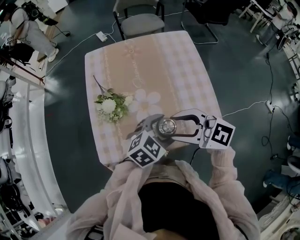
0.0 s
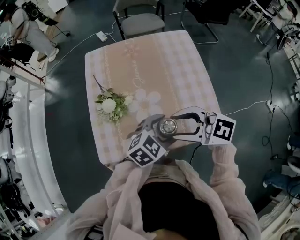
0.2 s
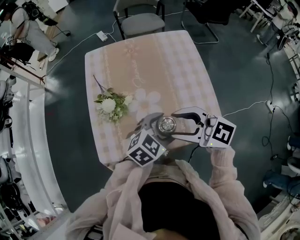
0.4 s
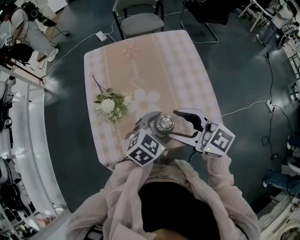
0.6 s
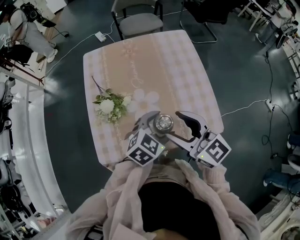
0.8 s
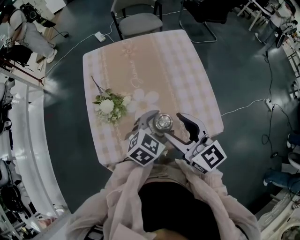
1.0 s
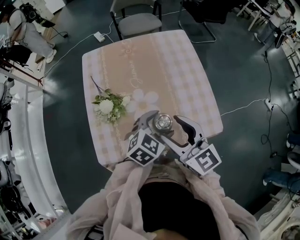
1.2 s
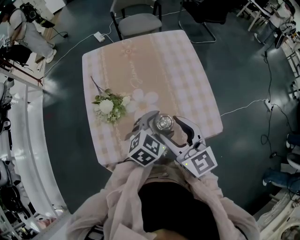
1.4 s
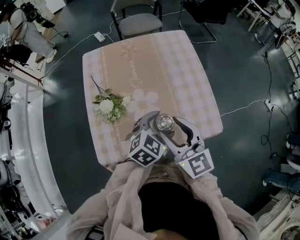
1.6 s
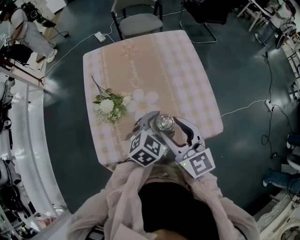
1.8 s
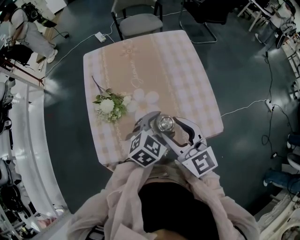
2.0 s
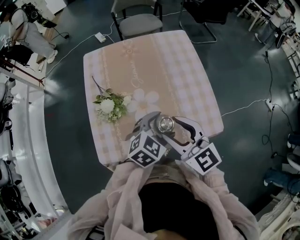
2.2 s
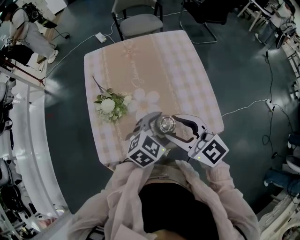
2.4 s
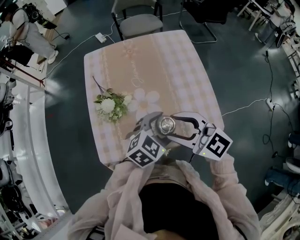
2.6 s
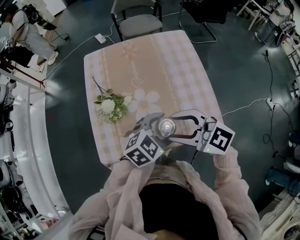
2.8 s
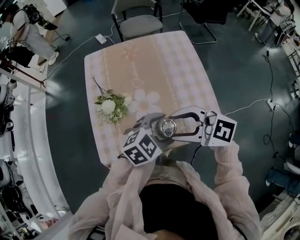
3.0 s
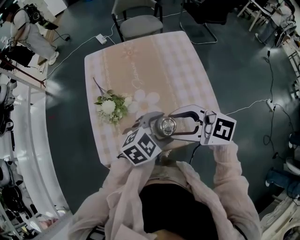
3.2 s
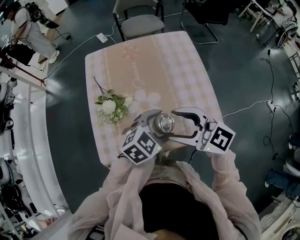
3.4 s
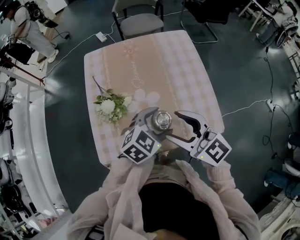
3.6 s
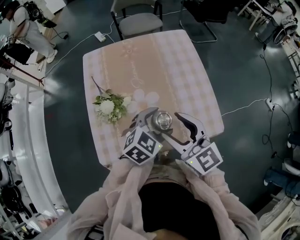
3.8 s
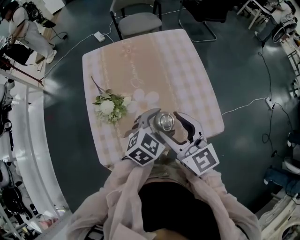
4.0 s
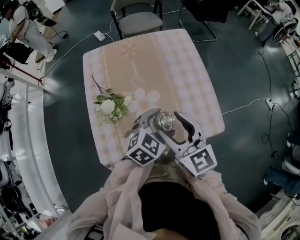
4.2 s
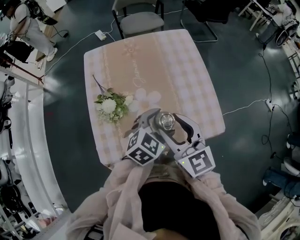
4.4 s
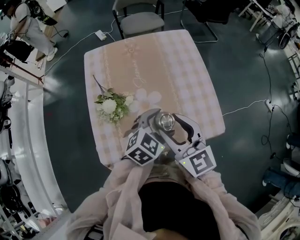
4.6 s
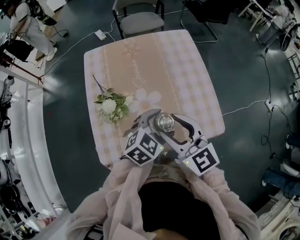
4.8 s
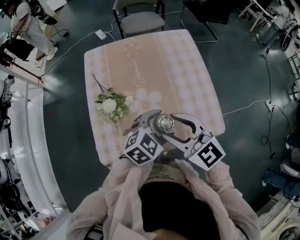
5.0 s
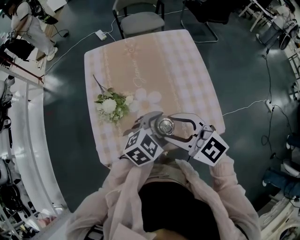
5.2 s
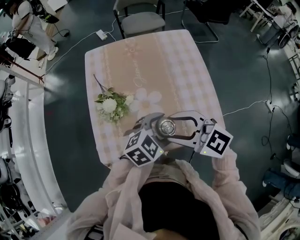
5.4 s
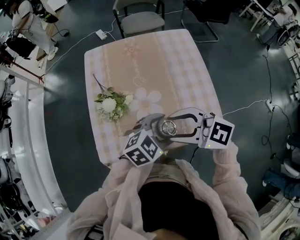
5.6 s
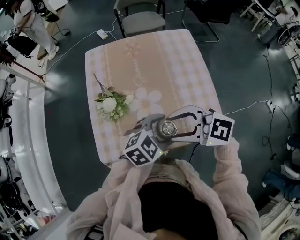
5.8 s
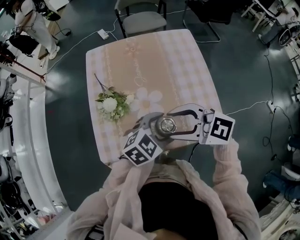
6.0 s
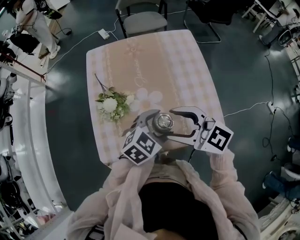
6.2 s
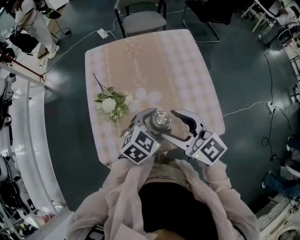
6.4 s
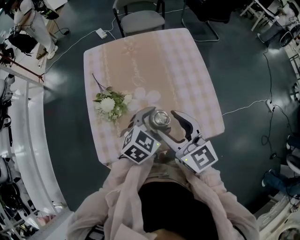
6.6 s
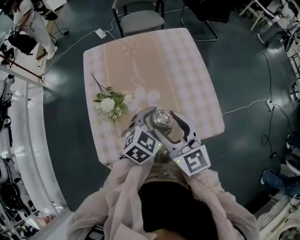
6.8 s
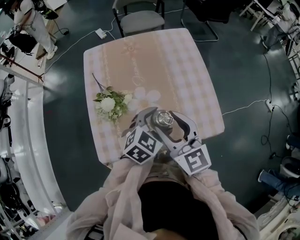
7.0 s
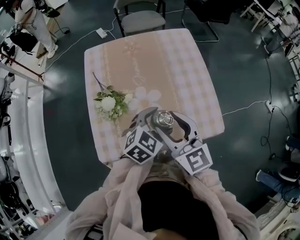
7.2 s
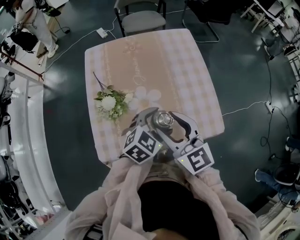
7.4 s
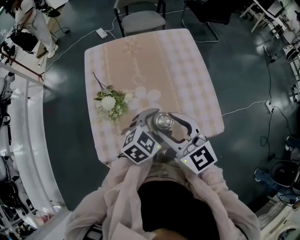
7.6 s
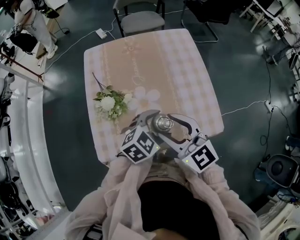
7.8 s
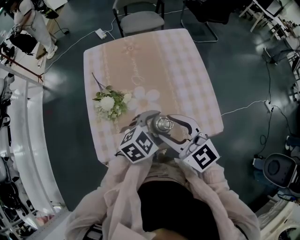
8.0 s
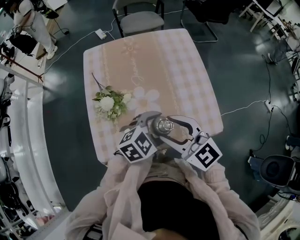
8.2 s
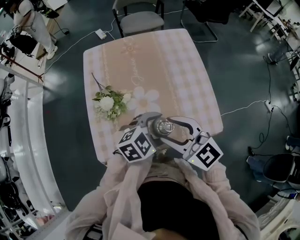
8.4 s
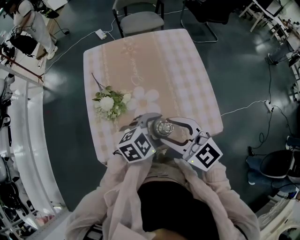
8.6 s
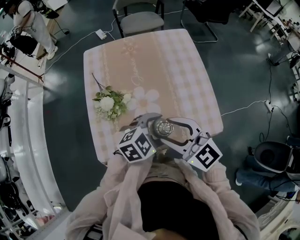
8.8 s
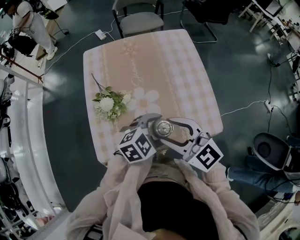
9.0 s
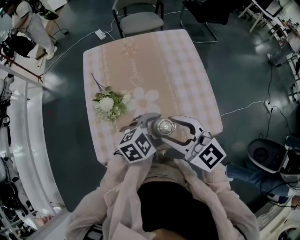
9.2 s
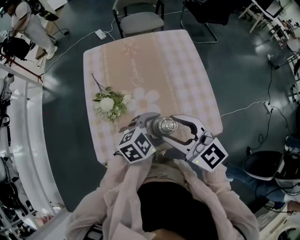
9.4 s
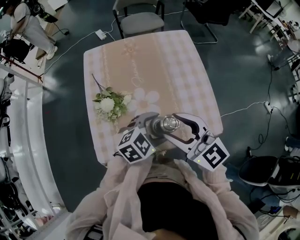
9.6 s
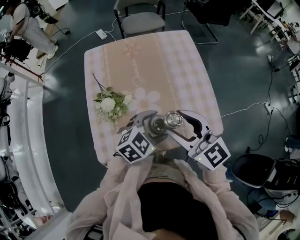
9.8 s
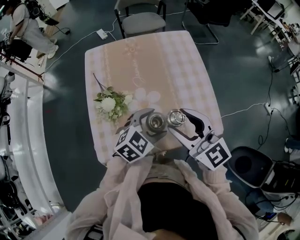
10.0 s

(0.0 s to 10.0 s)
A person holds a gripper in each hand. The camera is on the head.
0.0 s - 1.4 s: The right gripper swivels about 40 degrees.
1.4 s - 2.8 s: The right gripper turns by about 40 degrees.
2.8 s - 4.2 s: The right gripper swivels about 40 degrees.
4.2 s - 5.8 s: The right gripper changes its angle by about 50 degrees.
5.8 s - 7.2 s: The right gripper rotates approximately 50 degrees.
7.2 s - 8.6 s: The right gripper turns by roughly 30 degrees.
8.6 s - 10.0 s: The right gripper changes place by roughly 5 cm.

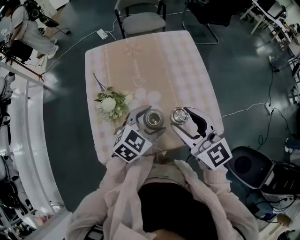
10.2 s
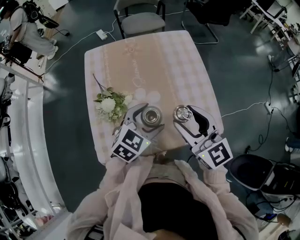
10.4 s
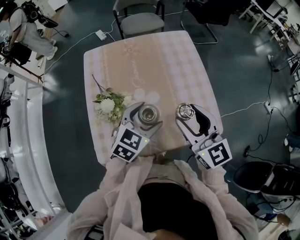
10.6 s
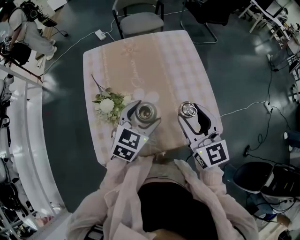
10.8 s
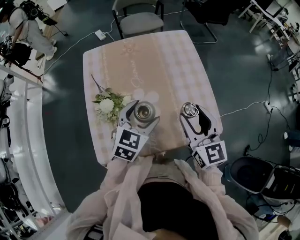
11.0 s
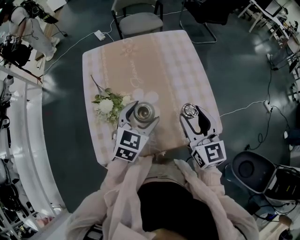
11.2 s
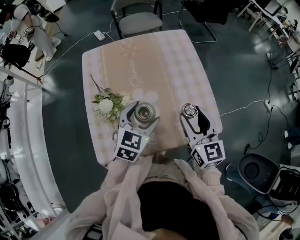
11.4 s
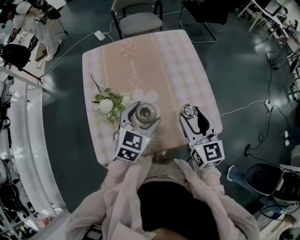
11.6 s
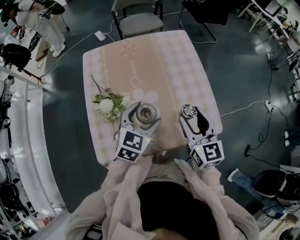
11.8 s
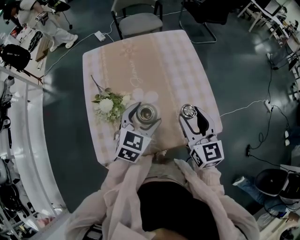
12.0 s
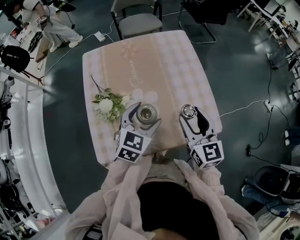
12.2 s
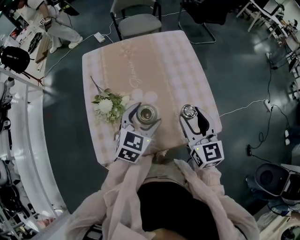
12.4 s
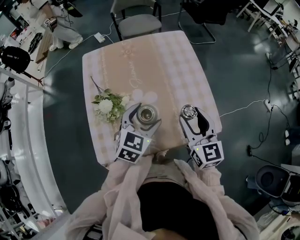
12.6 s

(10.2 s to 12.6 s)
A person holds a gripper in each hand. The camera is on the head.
10.2 s - 11.4 s: The right gripper goes approximately 10 cm to the right and downward, and rotates about 30 degrees.
11.4 s - 12.6 s: There are only small adjustments of the grippers.

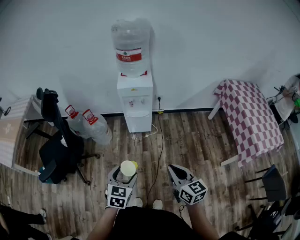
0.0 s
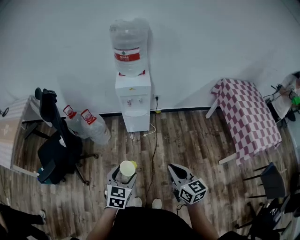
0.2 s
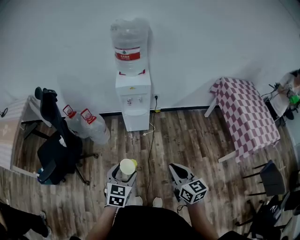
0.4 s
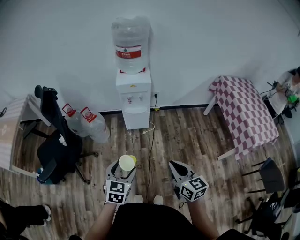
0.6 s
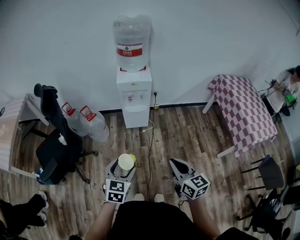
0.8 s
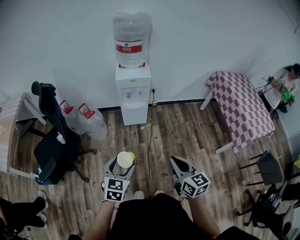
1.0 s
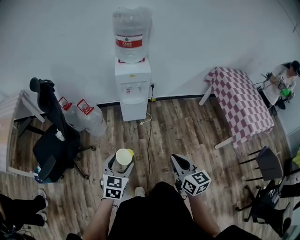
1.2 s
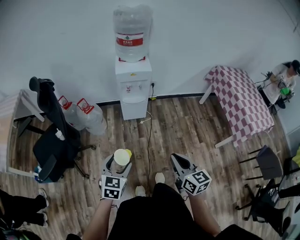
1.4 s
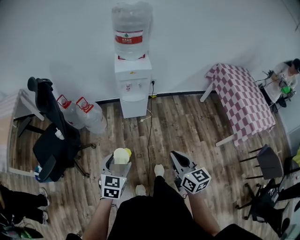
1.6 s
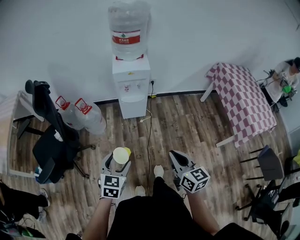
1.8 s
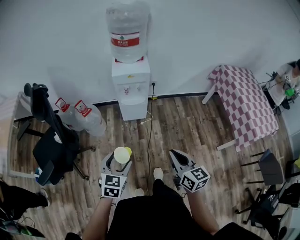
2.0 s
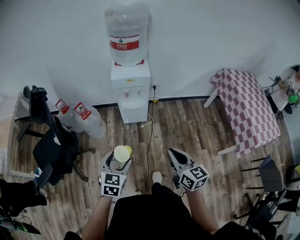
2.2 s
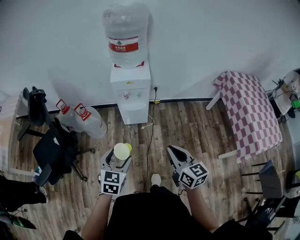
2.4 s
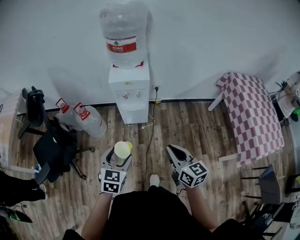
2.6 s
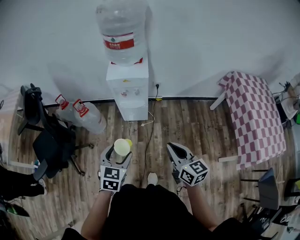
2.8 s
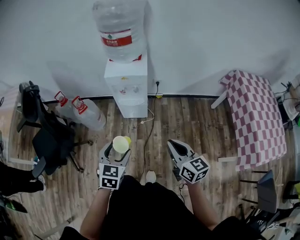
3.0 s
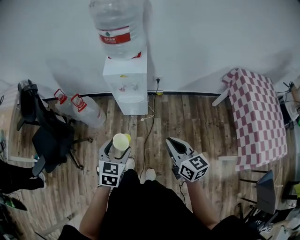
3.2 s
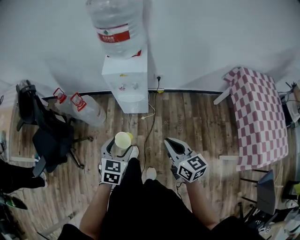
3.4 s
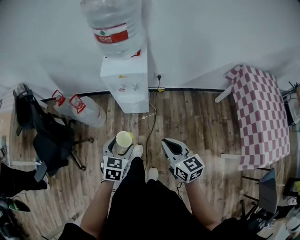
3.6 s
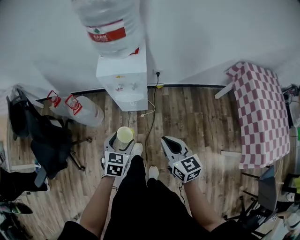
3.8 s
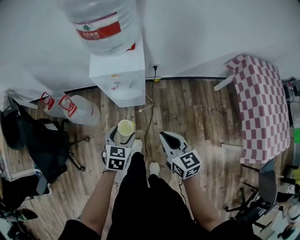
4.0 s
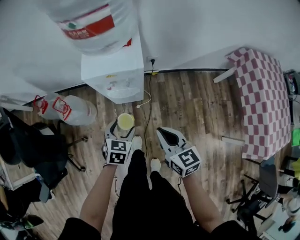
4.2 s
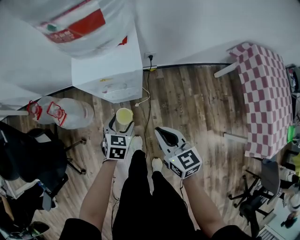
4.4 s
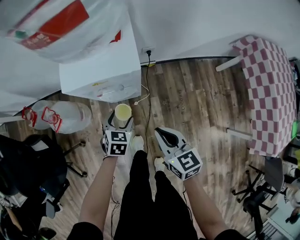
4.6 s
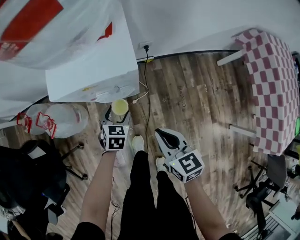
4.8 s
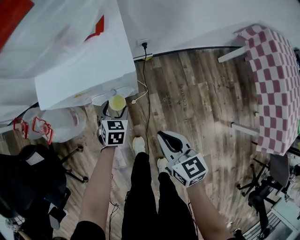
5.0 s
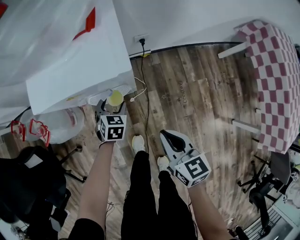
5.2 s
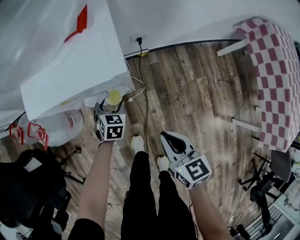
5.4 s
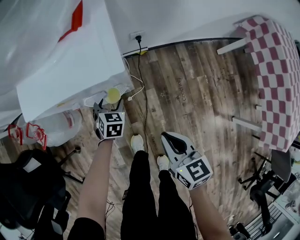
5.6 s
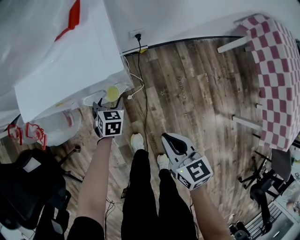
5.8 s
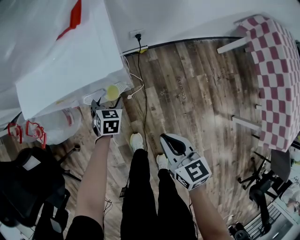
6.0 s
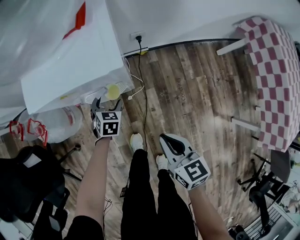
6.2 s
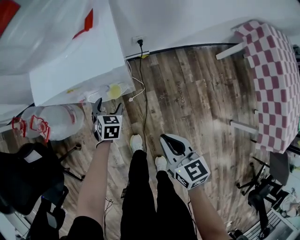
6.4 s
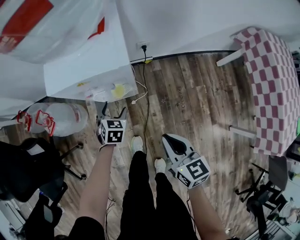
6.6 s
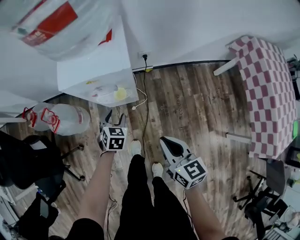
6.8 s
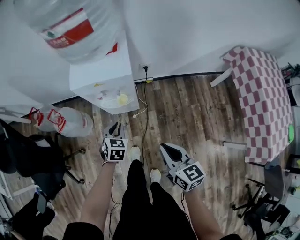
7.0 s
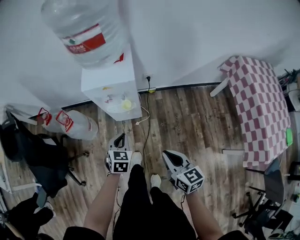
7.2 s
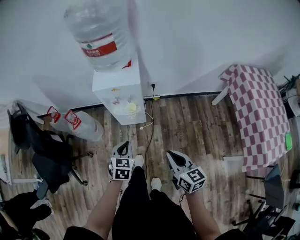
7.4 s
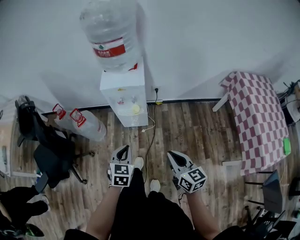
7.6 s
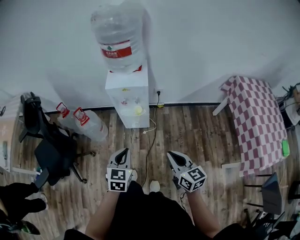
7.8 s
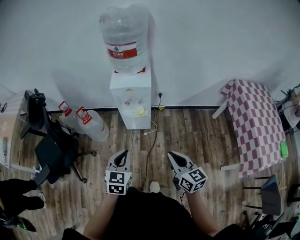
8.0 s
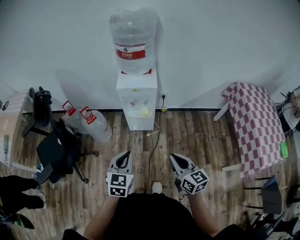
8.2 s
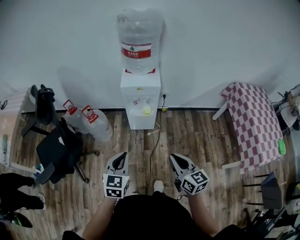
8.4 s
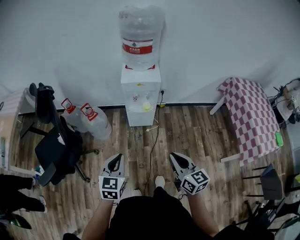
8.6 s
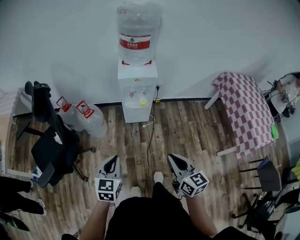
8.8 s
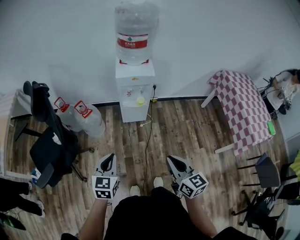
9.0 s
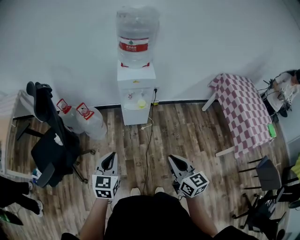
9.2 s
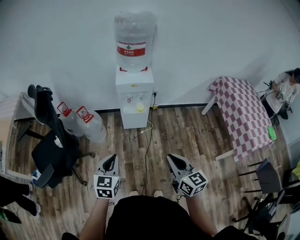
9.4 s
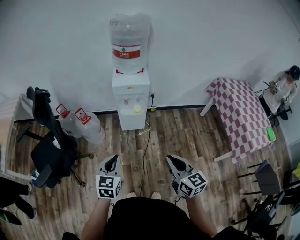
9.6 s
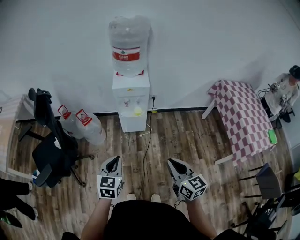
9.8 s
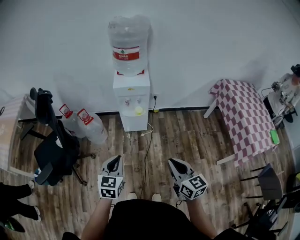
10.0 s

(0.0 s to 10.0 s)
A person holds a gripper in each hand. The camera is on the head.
0.0 s - 1.4 s: The two grippers go some 10 cm to the left.
1.4 s - 2.8 s: Both grippers move forward and to the right, approximately 25 cm.
2.8 s - 4.2 s: Both grippers move forward and downward, roughly 25 cm.
4.2 s - 5.8 s: The right gripper heads downward, covering roughly 20 cm. Meanwhile the left gripper is displaced downward and forward by approximately 35 cm.
5.8 s - 7.2 s: The left gripper travels upward and backward by about 35 cm, and closes; the right gripper heads upward and backward, covering approximately 25 cm.
7.2 s - 8.6 s: The two grippers go approximately 30 cm backward, to the left and upward.
8.6 s - 10.0 s: The left gripper travels to the right by roughly 5 cm. The right gripper goes about 10 cm backward and to the right.

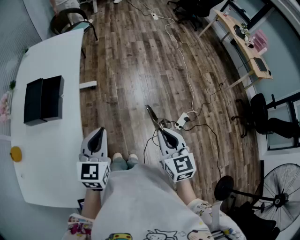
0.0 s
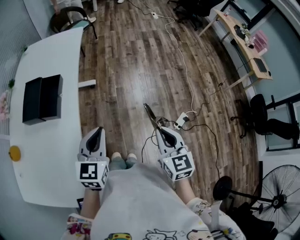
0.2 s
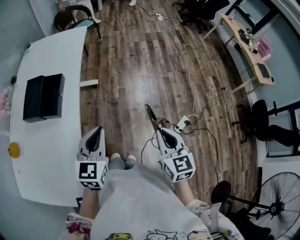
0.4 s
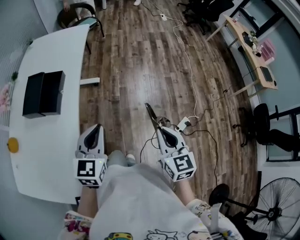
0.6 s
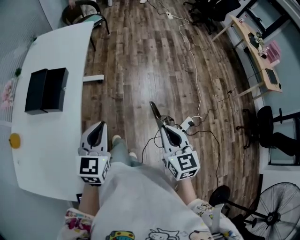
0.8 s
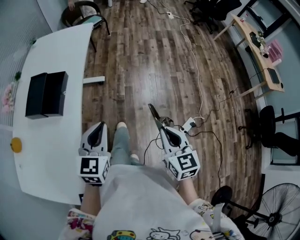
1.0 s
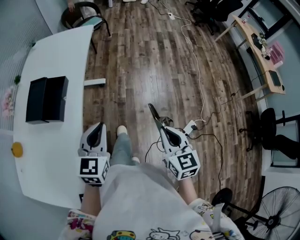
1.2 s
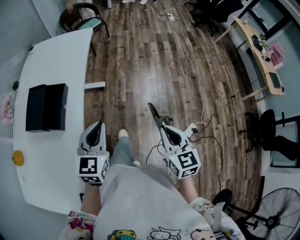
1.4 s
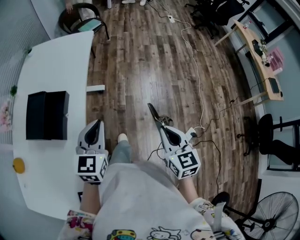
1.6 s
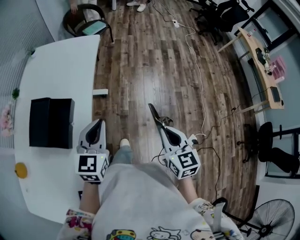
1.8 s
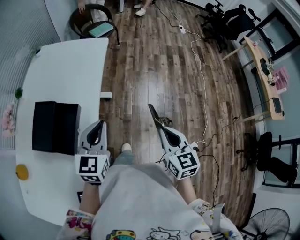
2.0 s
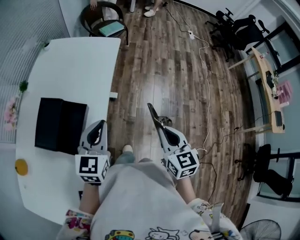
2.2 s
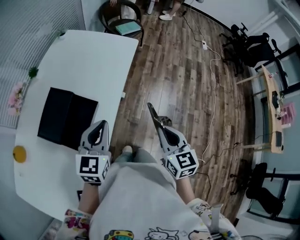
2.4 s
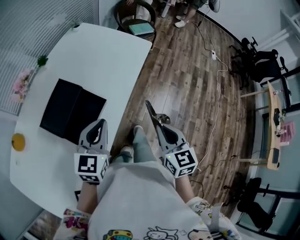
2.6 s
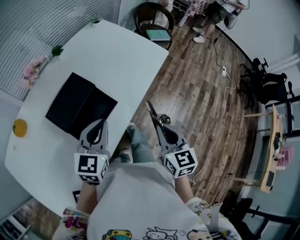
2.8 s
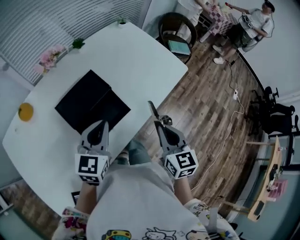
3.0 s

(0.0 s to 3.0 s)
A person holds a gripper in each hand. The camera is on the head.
0.0 s - 1.6 s: Both grippers move forward, some 15 cm.
1.6 s - 3.0 s: The left gripper moves about 25 cm, and changes its angle by some 40 degrees; the right gripper shifts by some 35 cm, and turns by roughly 40 degrees.
